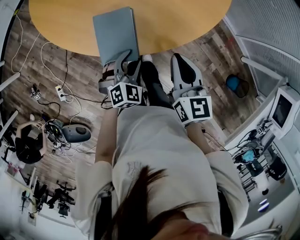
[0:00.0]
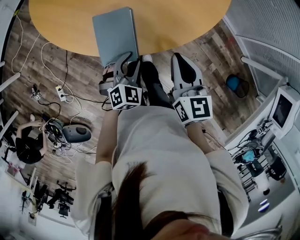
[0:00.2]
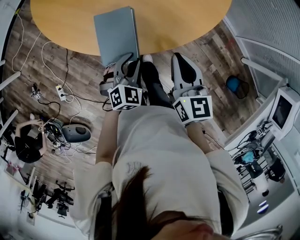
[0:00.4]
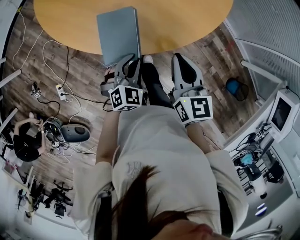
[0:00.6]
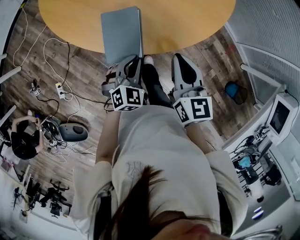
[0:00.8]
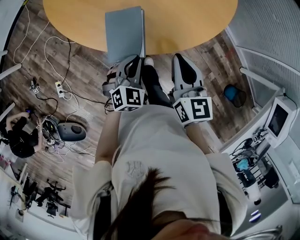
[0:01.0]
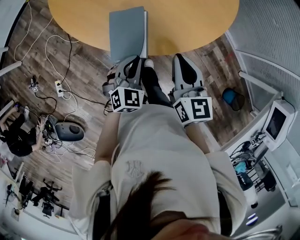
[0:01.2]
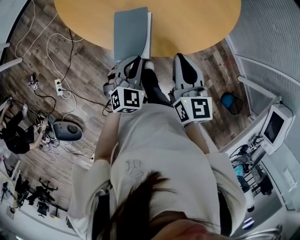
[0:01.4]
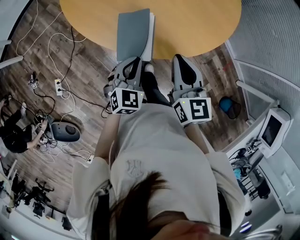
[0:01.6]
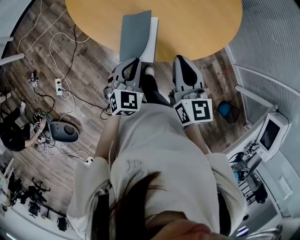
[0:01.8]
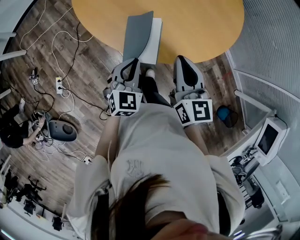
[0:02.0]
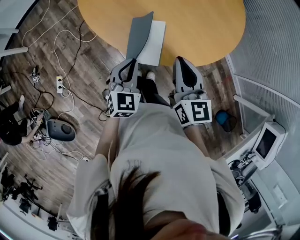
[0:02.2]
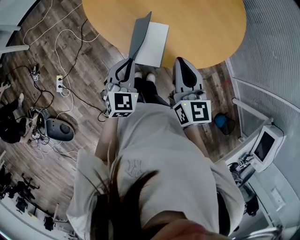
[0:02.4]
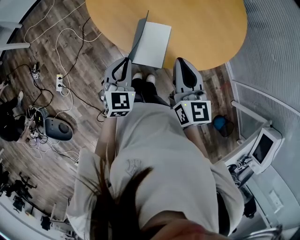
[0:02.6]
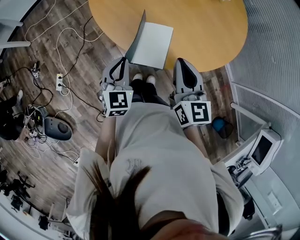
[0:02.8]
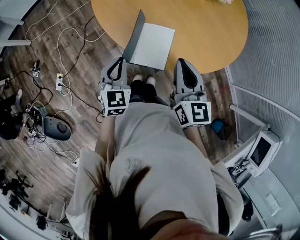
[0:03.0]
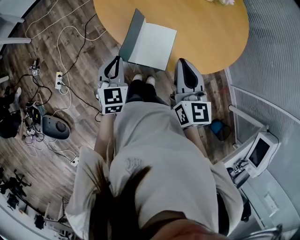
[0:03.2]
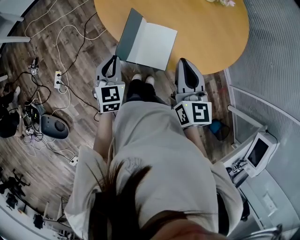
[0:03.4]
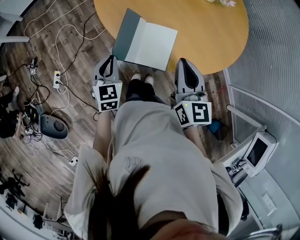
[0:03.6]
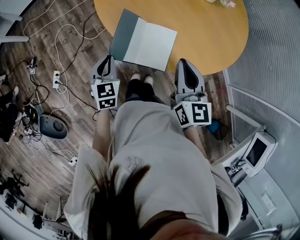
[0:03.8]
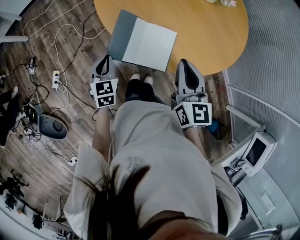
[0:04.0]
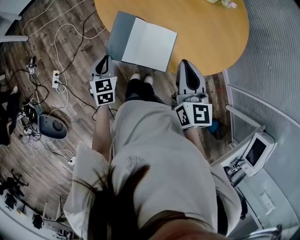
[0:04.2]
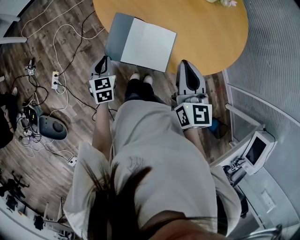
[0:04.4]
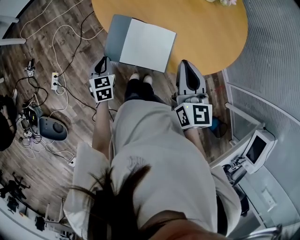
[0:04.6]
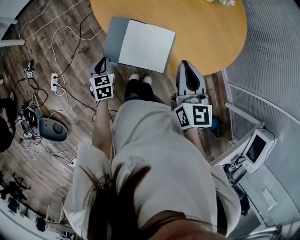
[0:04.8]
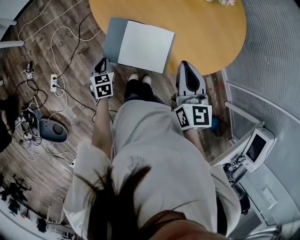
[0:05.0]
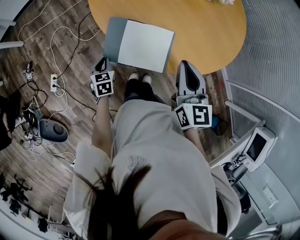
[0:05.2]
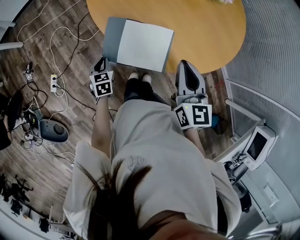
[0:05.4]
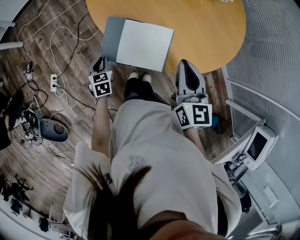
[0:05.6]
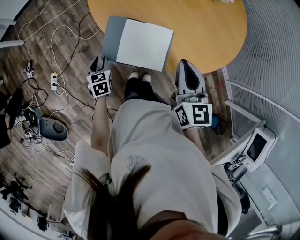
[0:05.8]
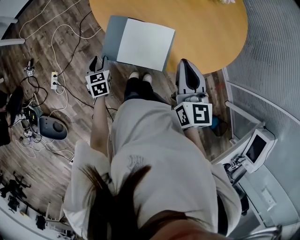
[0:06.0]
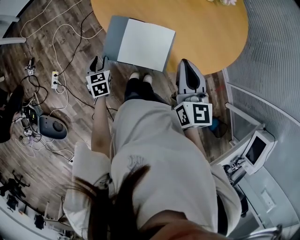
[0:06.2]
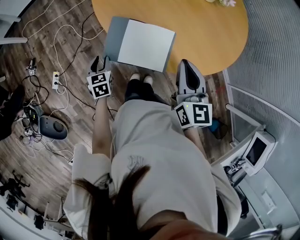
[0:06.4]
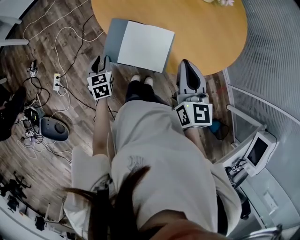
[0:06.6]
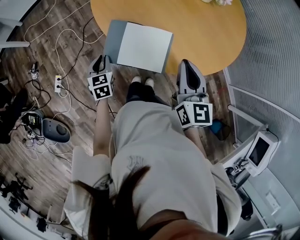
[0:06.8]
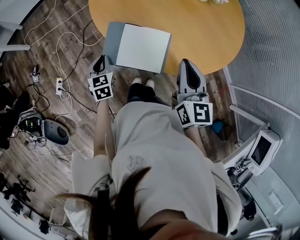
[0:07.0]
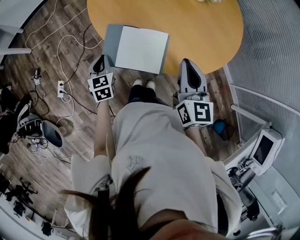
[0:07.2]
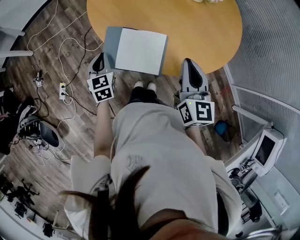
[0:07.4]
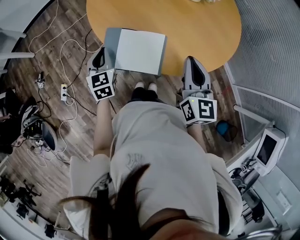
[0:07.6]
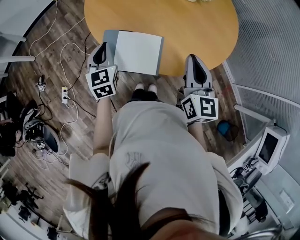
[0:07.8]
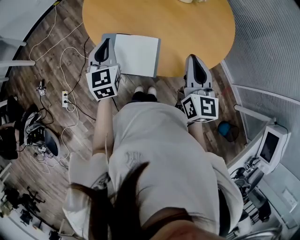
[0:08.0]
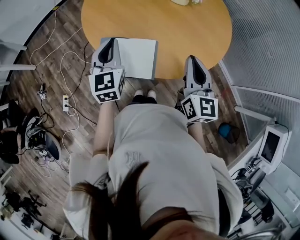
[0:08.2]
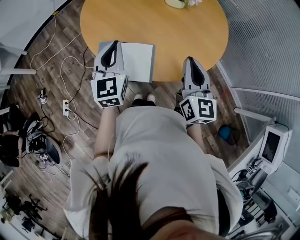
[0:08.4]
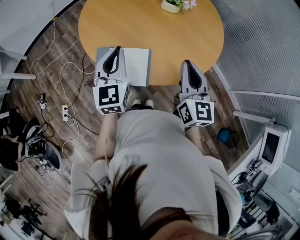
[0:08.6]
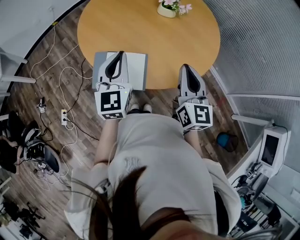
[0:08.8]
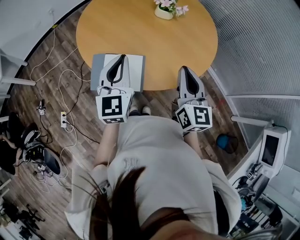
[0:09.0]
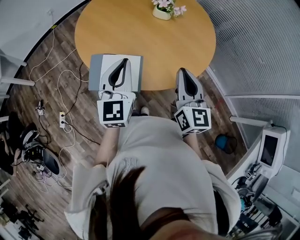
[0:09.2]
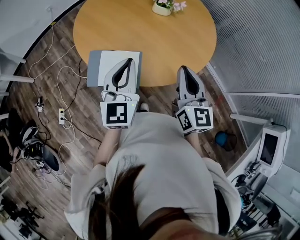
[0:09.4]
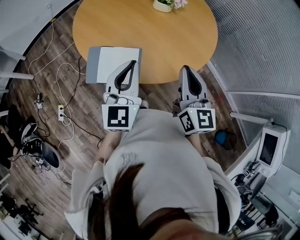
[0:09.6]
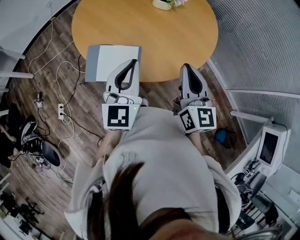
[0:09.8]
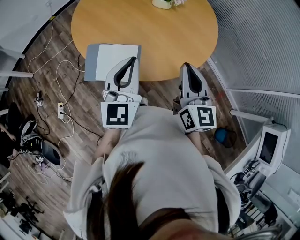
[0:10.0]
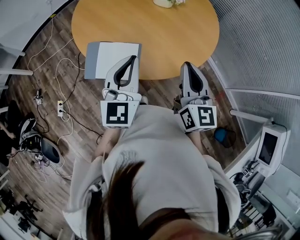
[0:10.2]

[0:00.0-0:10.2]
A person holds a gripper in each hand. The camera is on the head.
0:00.0 to 0:01.4: The left gripper moves upward, about 5 cm, and closes its fingers. The right gripper ends up about 5 cm from where it was.
0:01.4 to 0:03.0: The right gripper travels to the left by some 10 cm. The left gripper travels to the left by about 15 cm, and turns by roughly 30 degrees.
0:03.0 to 0:04.4: The left gripper heads downward and to the left, covering some 15 cm.
0:04.4 to 0:05.8: The left gripper heads downward, covering approximately 5 cm, and opens up.
0:05.8 to 0:07.2: The left gripper travels upward by roughly 10 cm, and closes.
0:07.2 to 0:08.8: The left gripper travels upward and to the right by about 30 cm, and angles its fingers upward, by about 30 degrees. Meanwhile the right gripper shifts about 10 cm to the right and upward.
0:08.8 to 0:10.2: The left gripper shifts some 10 cm to the right and backward.

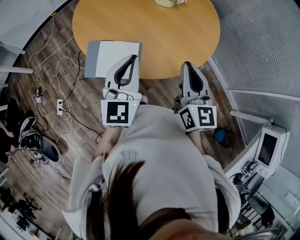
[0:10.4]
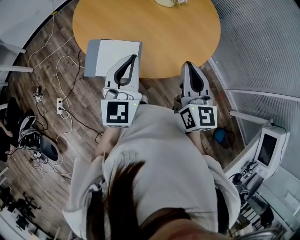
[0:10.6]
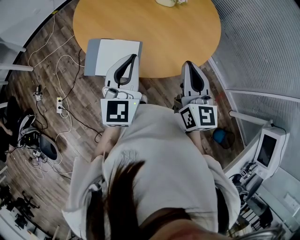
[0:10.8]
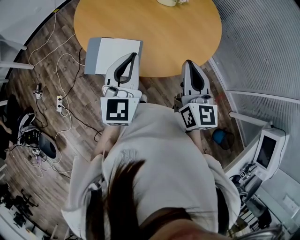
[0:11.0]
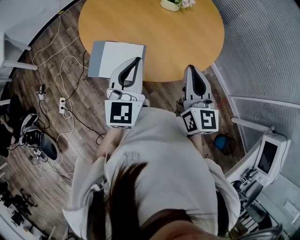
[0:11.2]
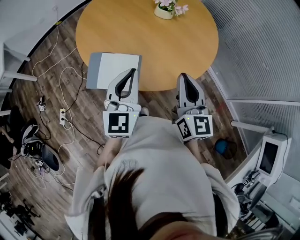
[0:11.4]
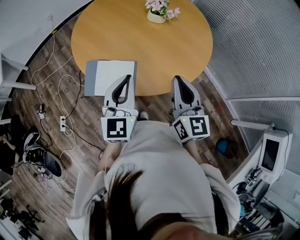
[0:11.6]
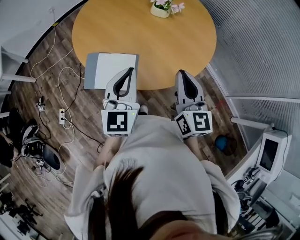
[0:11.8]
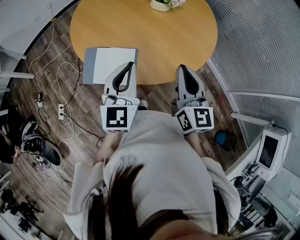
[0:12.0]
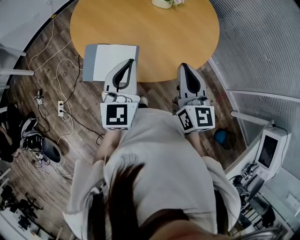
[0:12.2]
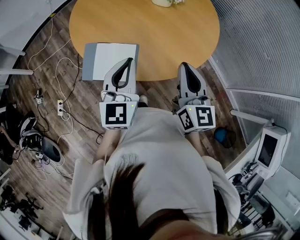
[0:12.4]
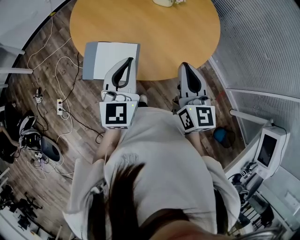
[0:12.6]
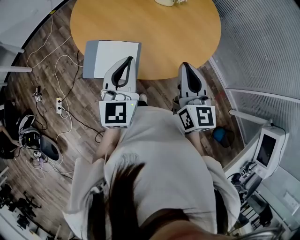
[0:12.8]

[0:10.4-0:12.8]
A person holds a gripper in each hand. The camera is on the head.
0:10.4 to 0:12.8: The grippers make only small movements.

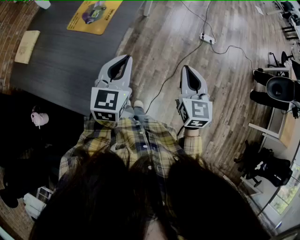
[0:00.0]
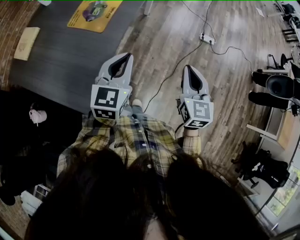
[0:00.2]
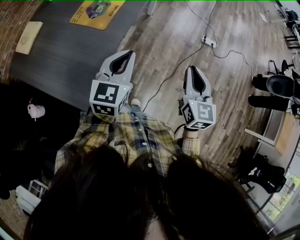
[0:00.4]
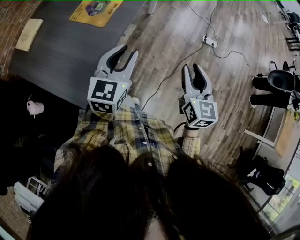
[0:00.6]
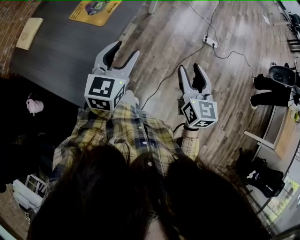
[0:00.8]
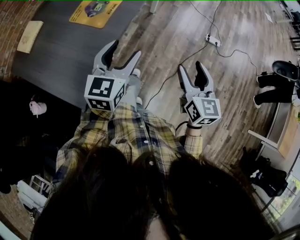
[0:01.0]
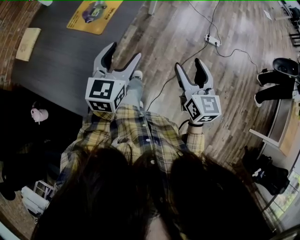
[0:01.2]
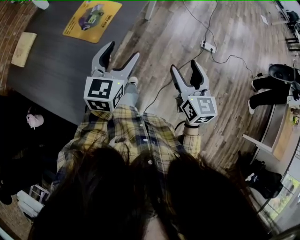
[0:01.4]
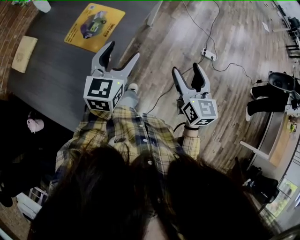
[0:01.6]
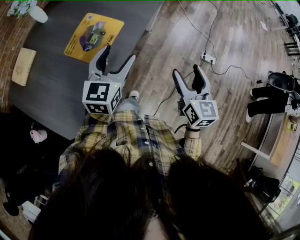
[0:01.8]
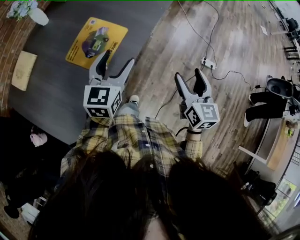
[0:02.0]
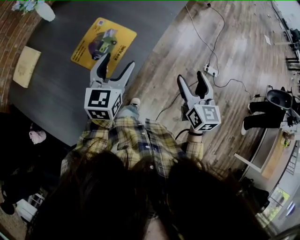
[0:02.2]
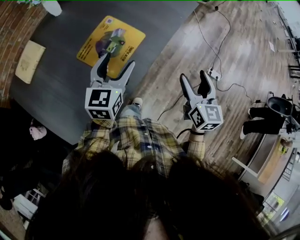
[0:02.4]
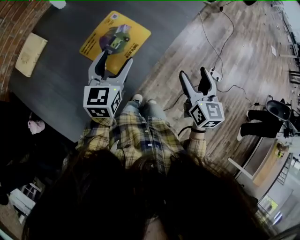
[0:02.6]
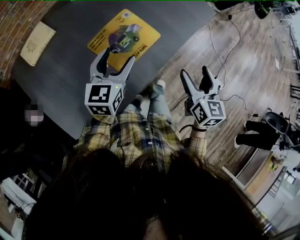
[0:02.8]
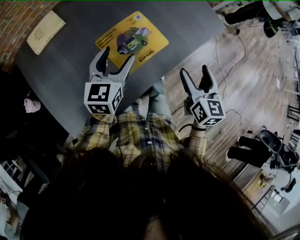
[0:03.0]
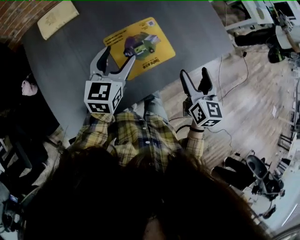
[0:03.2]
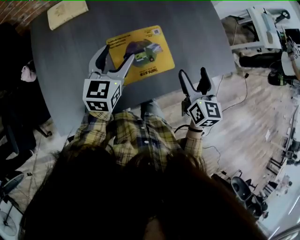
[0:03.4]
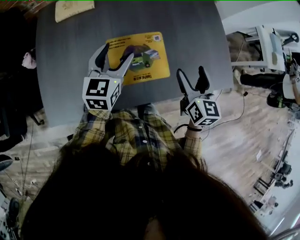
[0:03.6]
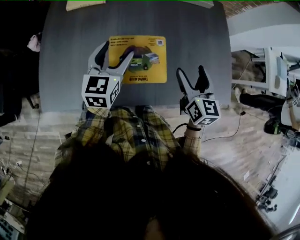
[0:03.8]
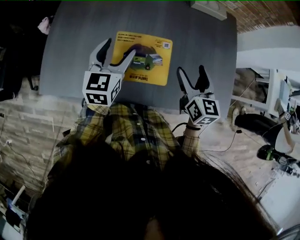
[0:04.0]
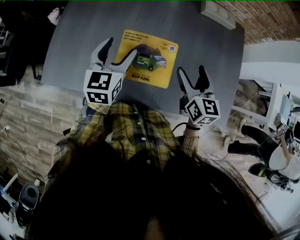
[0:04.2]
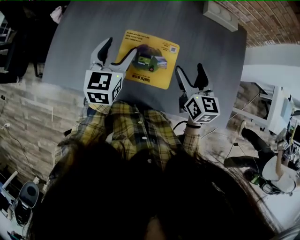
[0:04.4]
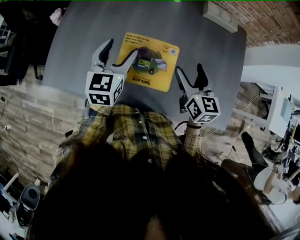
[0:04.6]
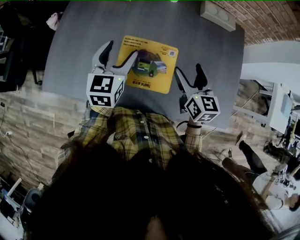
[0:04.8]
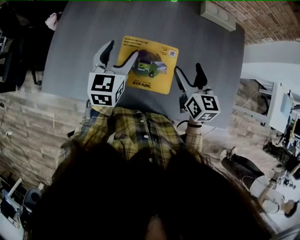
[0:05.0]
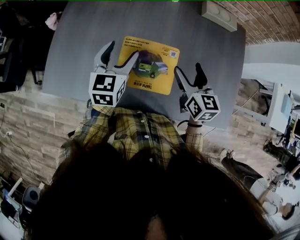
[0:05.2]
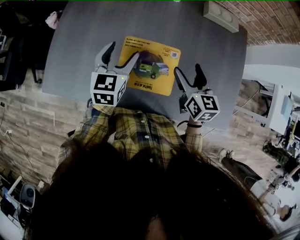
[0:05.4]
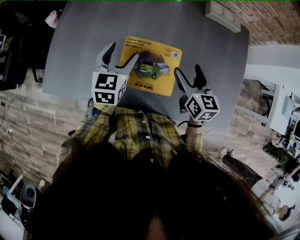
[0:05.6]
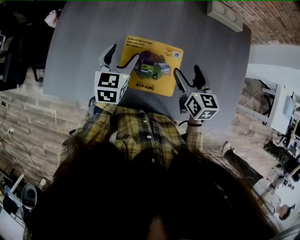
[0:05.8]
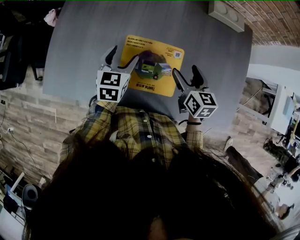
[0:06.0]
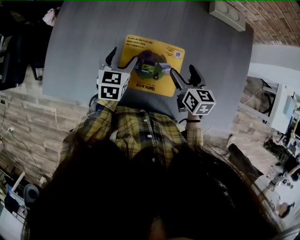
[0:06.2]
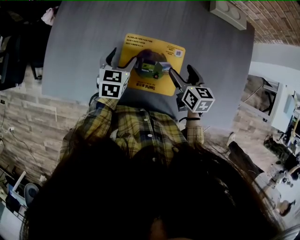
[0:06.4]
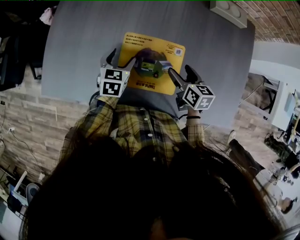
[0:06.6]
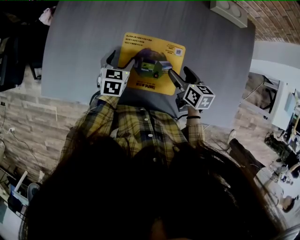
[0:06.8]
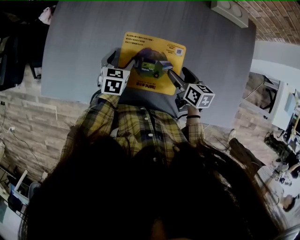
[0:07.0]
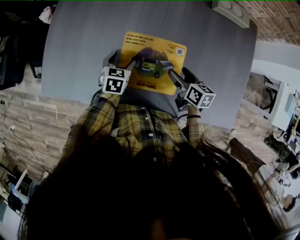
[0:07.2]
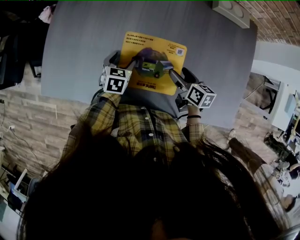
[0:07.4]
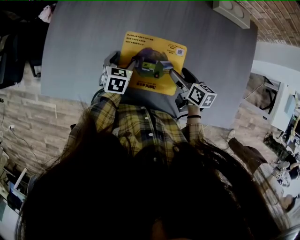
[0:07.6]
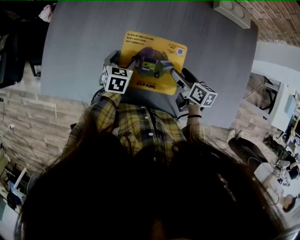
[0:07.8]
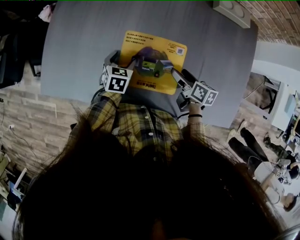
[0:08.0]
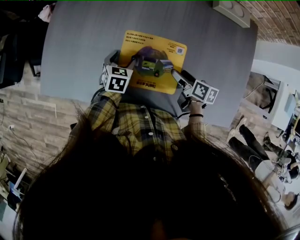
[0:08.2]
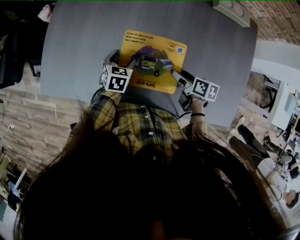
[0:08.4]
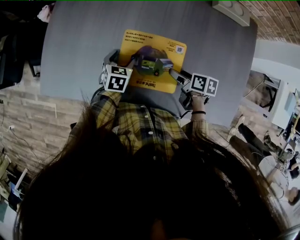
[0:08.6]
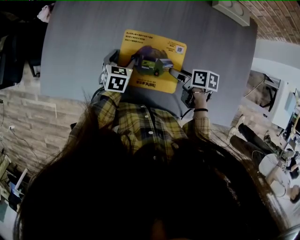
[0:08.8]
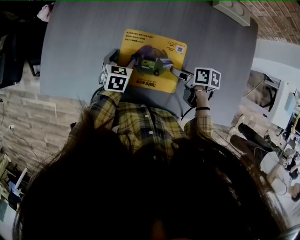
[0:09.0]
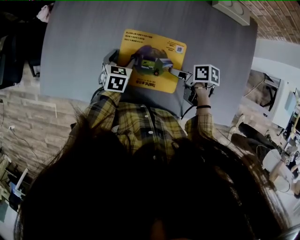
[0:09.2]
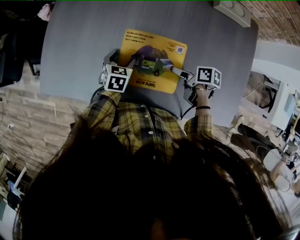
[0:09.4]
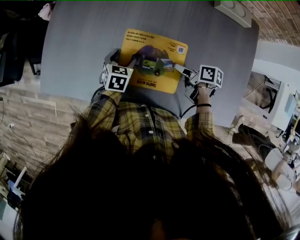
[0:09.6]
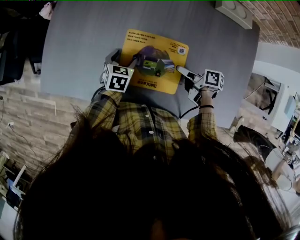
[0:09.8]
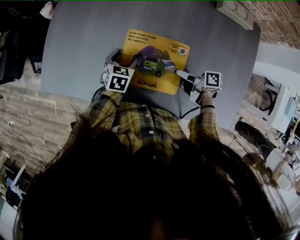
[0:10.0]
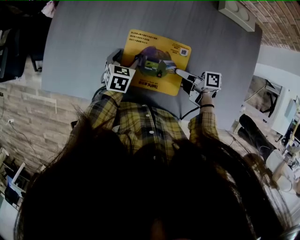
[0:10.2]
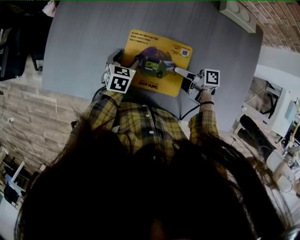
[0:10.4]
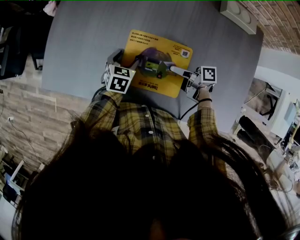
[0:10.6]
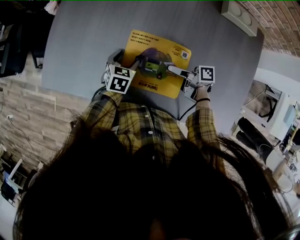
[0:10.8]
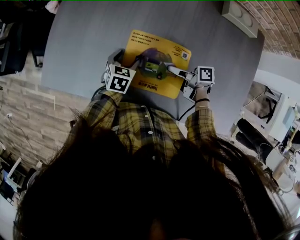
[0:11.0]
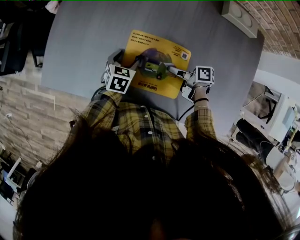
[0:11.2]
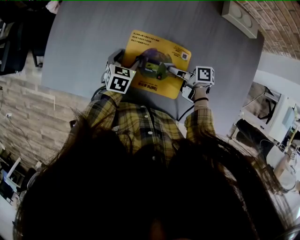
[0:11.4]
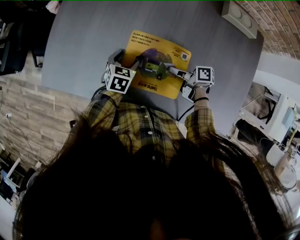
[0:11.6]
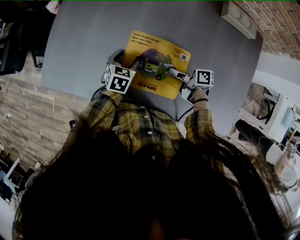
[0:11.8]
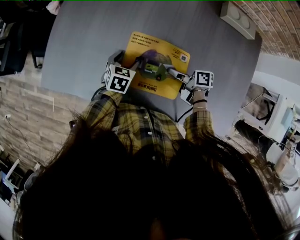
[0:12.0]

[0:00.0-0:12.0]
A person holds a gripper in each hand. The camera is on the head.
0:00.0 to 0:01.6: The grippers both shift forward by about 15 cm. The left gripper opens, while the right gripper opens.
0:01.6 to 0:03.0: The left gripper moves to the left and forward, roughly 25 cm, and rotates approximately 30 degrees, while the right gripper goes some 30 cm forward and to the left, and swivels roughly 20 degrees.
0:03.0 to 0:04.4: The left gripper swivels roughly 50 degrees. Meanwhile the right gripper ends up approximately 25 cm from where it was, and turns by roughly 60 degrees.
0:04.4 to 0:06.0: The two grippers go approximately 10 cm downward.
0:06.0 to 0:07.6: The grippers both shift downward by about 10 cm. The right gripper changes its angle by roughly 30 degrees.
0:07.6 to 0:09.0: The right gripper changes its angle by roughly 30 degrees.
0:09.0 to 0:10.4: The right gripper angles its fingers upward, by roughly 30 degrees.
0:10.4 to 0:12.0: The right gripper closes its fingers.
